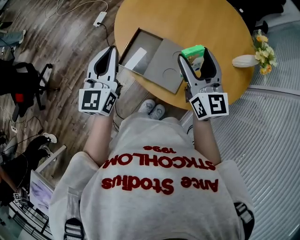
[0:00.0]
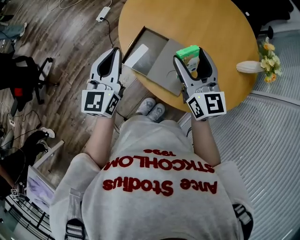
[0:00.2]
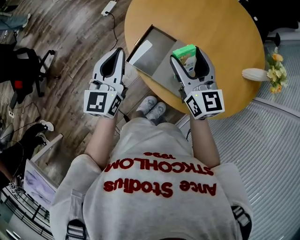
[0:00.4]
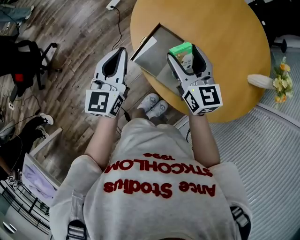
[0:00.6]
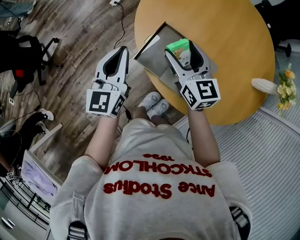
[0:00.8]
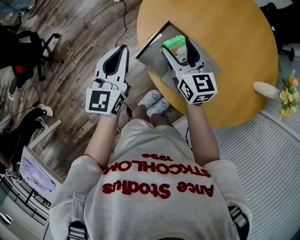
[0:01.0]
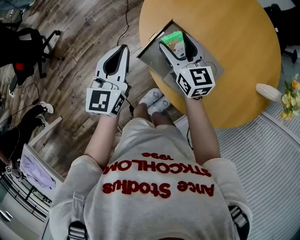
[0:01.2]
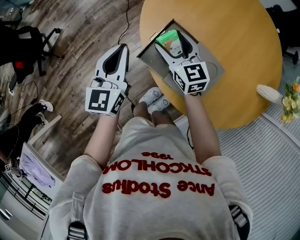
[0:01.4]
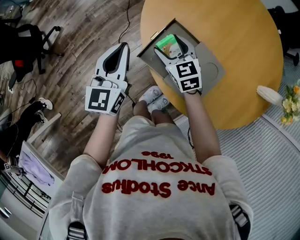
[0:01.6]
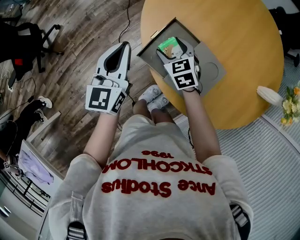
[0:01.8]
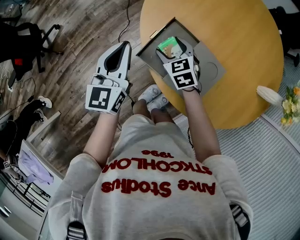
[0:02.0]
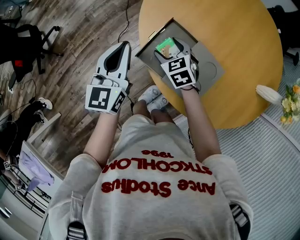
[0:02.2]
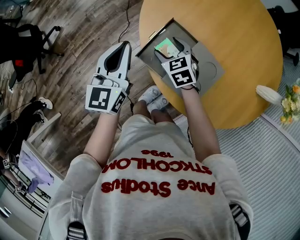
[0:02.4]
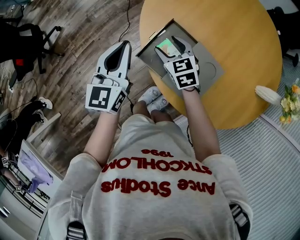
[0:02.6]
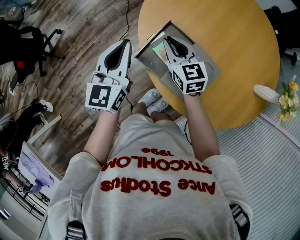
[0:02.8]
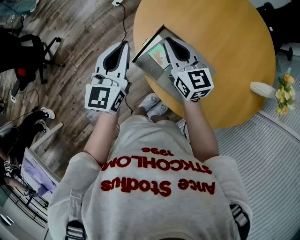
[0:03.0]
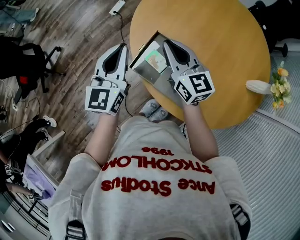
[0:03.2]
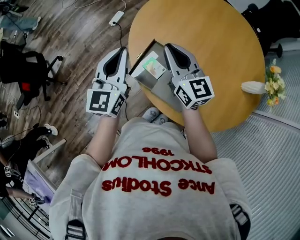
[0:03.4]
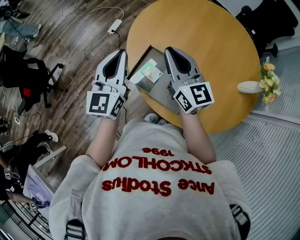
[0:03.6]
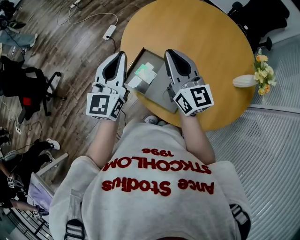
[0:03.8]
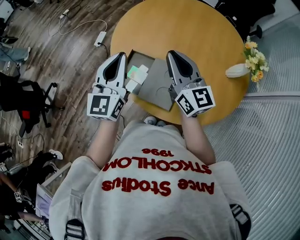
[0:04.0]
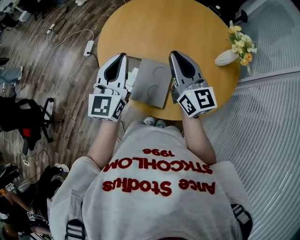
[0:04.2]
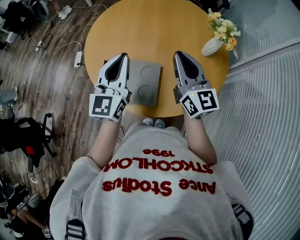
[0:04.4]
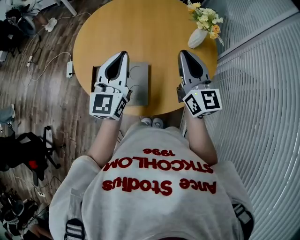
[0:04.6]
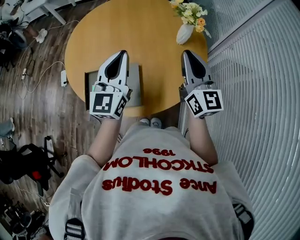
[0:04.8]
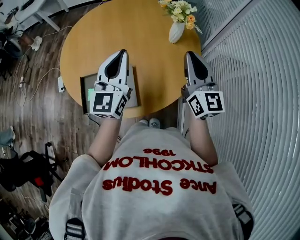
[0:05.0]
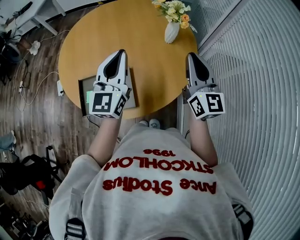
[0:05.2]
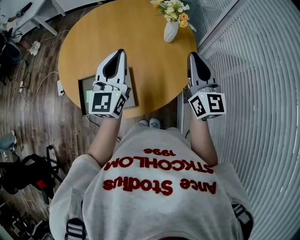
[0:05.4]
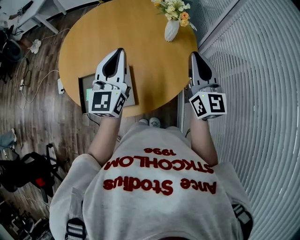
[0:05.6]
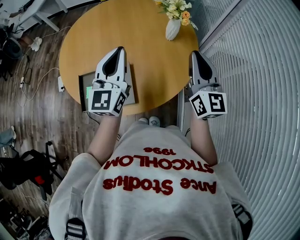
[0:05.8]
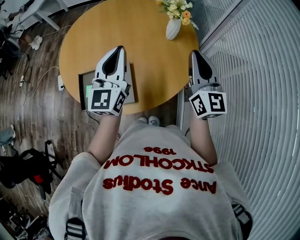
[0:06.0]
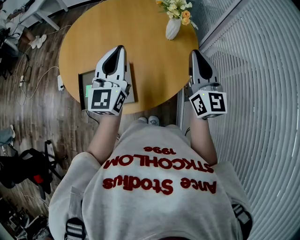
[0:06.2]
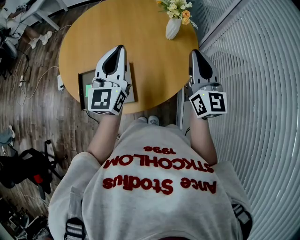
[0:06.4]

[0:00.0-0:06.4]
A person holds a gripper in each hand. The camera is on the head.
0:00.0 to 0:01.6: The left gripper shifts approximately 10 cm downward; the right gripper goes approximately 30 cm downward, to the left and forward, and points its fingers about 30 degrees further downward.
0:01.6 to 0:03.2: The left gripper is displaced upward by approximately 5 cm, while the right gripper travels upward by some 15 cm, turns by approximately 30 degrees, and closes.
0:03.2 to 0:04.8: The left gripper ends up about 25 cm from where it was, and rotates roughly 40 degrees. The right gripper ends up some 35 cm from where it was, and swivels some 50 degrees.
0:04.8 to 0:06.4: The right gripper goes roughly 10 cm to the right.

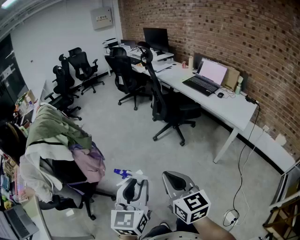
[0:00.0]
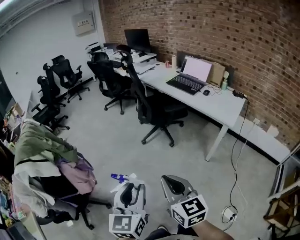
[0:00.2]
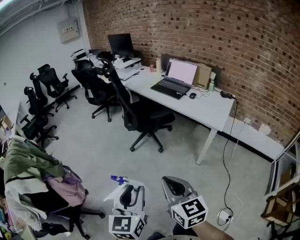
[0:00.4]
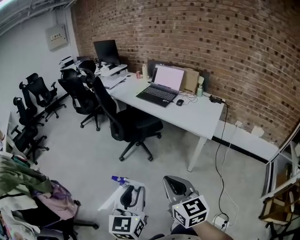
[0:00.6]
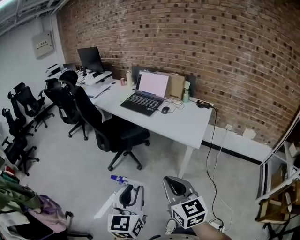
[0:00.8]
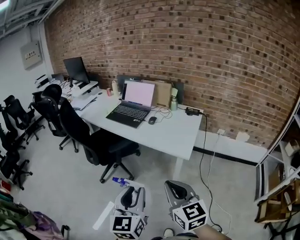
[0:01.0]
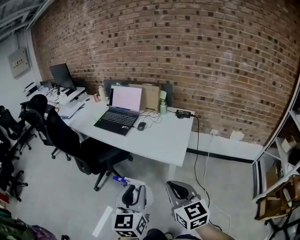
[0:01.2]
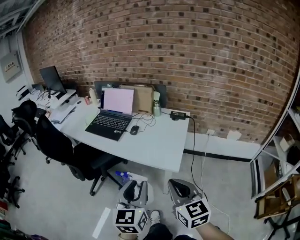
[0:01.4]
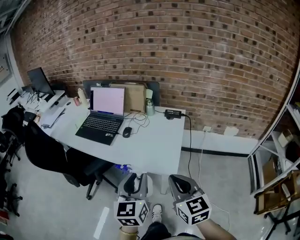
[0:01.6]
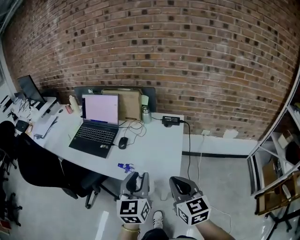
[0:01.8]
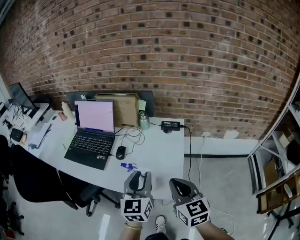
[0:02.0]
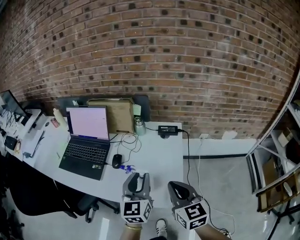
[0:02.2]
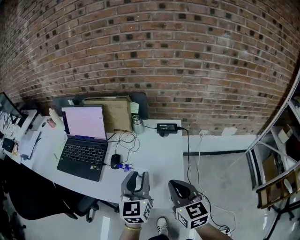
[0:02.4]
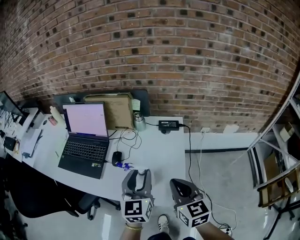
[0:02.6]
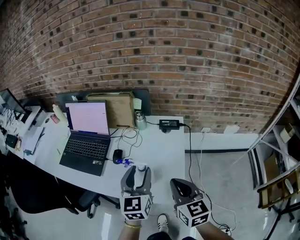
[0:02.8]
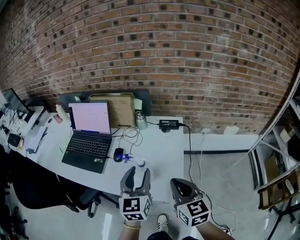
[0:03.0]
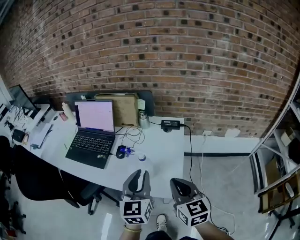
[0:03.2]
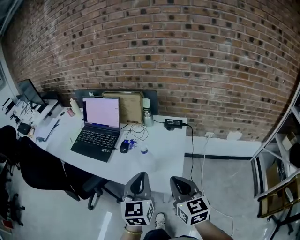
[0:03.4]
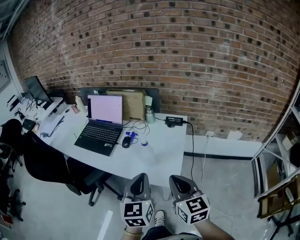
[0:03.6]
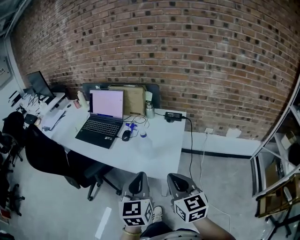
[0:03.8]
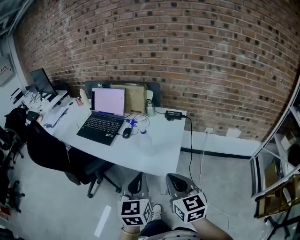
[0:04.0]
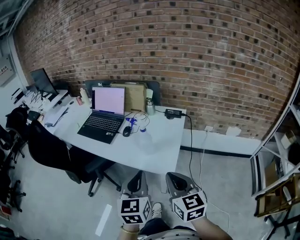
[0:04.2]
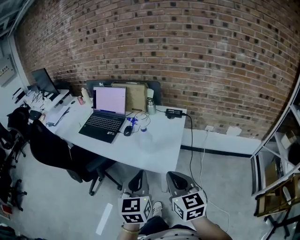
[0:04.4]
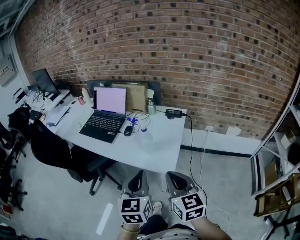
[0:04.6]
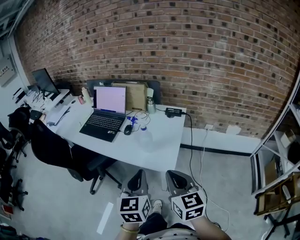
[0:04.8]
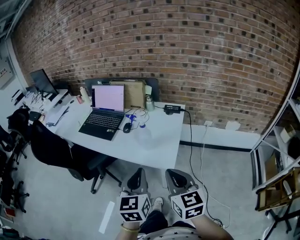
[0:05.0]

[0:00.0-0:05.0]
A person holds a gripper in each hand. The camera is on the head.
0:00.0 to 0:01.6: The pair of grippers is taken some 70 cm. The left gripper turns by some 30 degrees, while the right gripper swivels about 40 degrees.
0:01.6 to 0:03.4: The grippers both shift forward by approximately 10 cm. The left gripper closes its fingers.
0:03.4 to 0:05.0: The grippers both shift backward by about 15 cm.

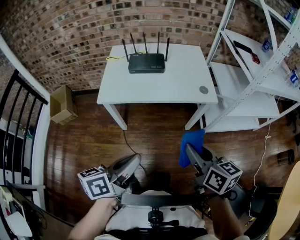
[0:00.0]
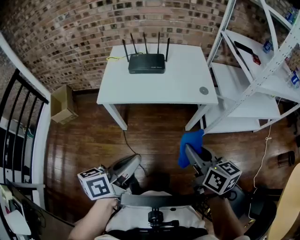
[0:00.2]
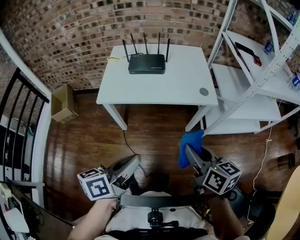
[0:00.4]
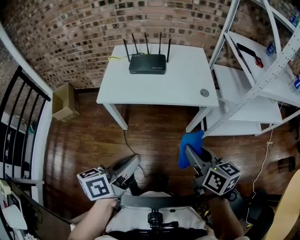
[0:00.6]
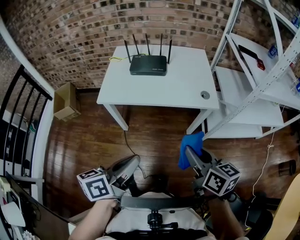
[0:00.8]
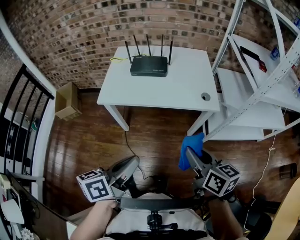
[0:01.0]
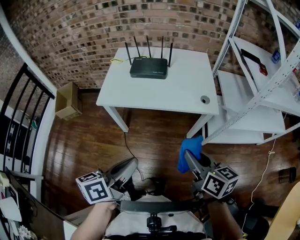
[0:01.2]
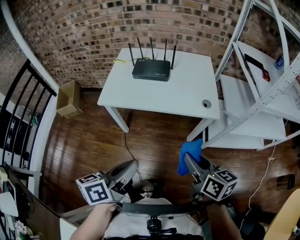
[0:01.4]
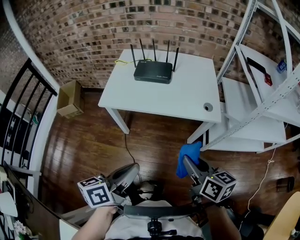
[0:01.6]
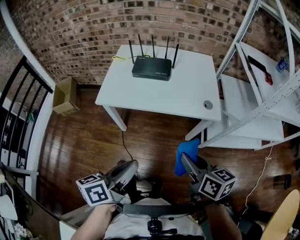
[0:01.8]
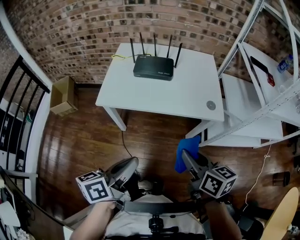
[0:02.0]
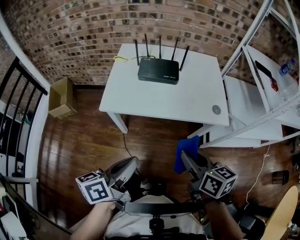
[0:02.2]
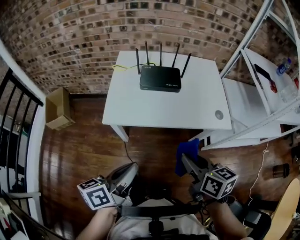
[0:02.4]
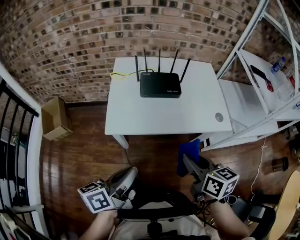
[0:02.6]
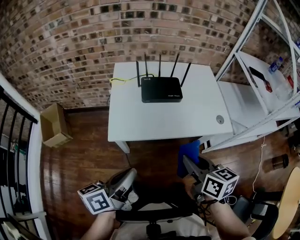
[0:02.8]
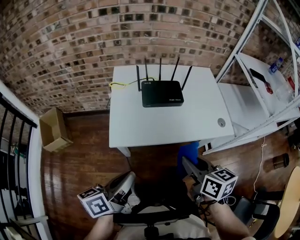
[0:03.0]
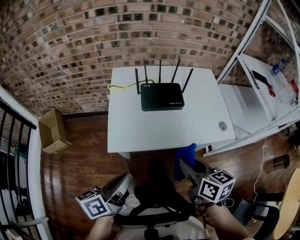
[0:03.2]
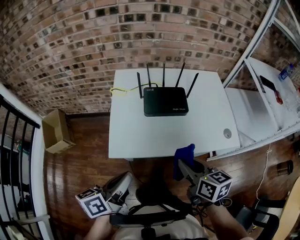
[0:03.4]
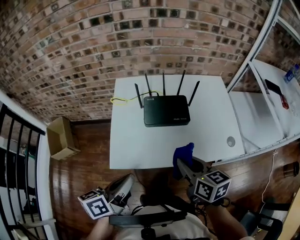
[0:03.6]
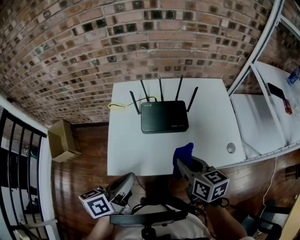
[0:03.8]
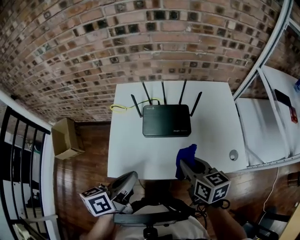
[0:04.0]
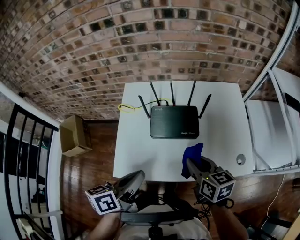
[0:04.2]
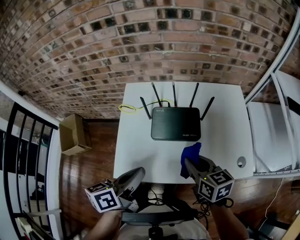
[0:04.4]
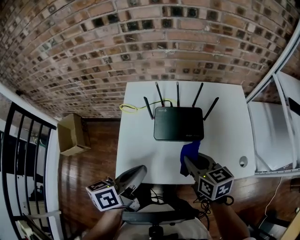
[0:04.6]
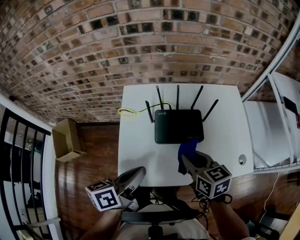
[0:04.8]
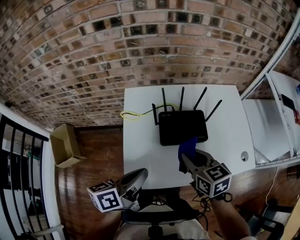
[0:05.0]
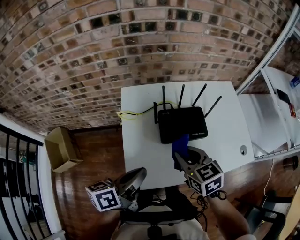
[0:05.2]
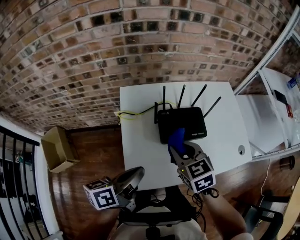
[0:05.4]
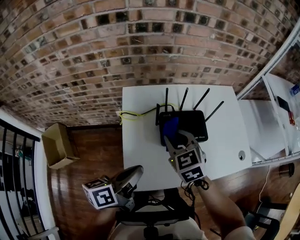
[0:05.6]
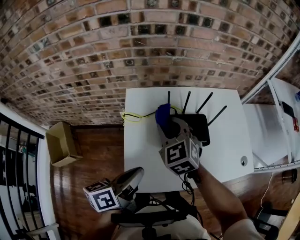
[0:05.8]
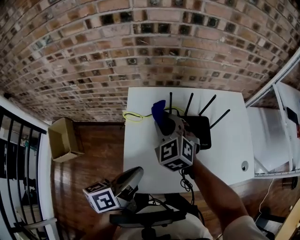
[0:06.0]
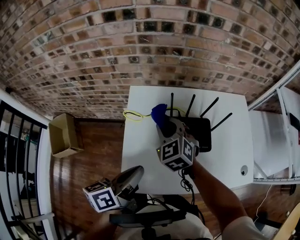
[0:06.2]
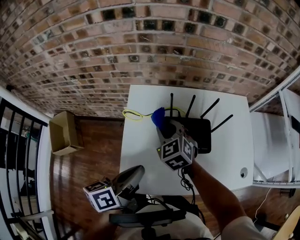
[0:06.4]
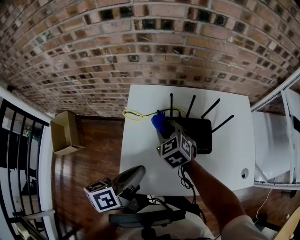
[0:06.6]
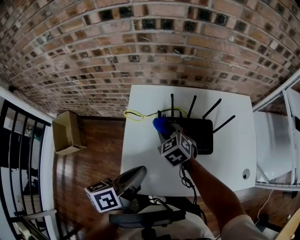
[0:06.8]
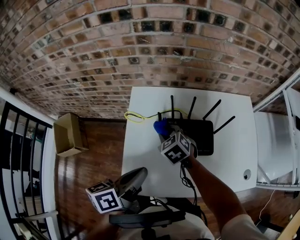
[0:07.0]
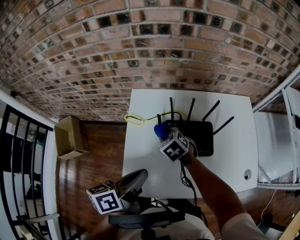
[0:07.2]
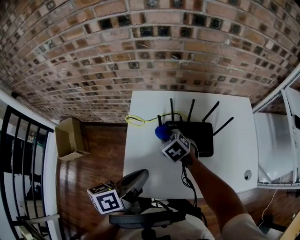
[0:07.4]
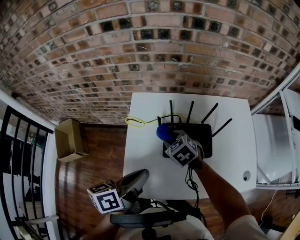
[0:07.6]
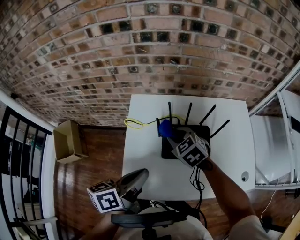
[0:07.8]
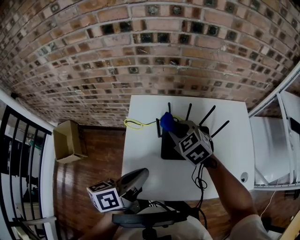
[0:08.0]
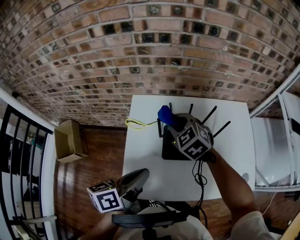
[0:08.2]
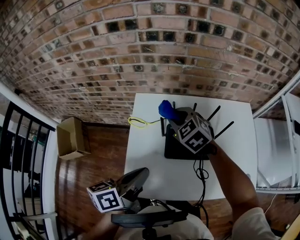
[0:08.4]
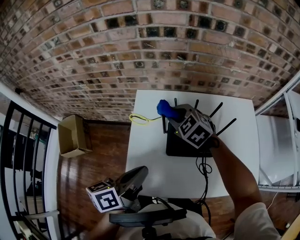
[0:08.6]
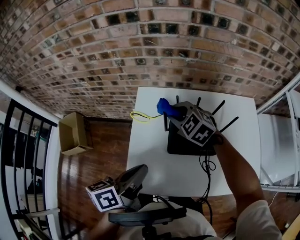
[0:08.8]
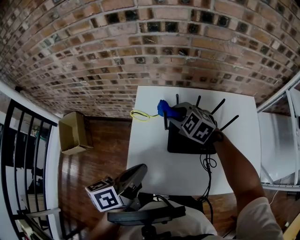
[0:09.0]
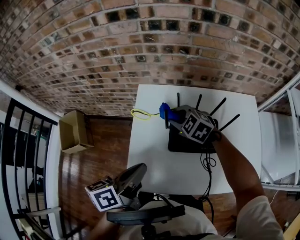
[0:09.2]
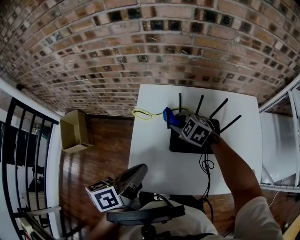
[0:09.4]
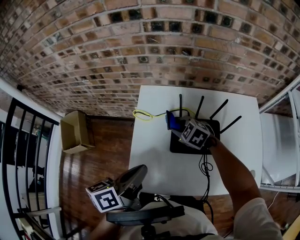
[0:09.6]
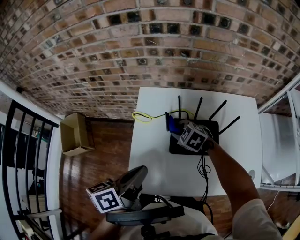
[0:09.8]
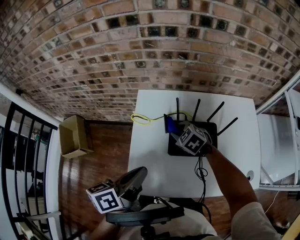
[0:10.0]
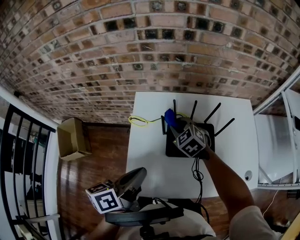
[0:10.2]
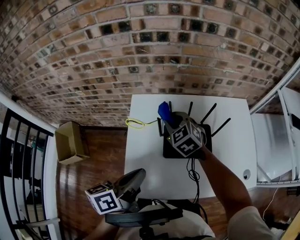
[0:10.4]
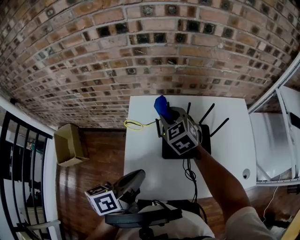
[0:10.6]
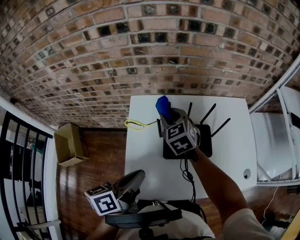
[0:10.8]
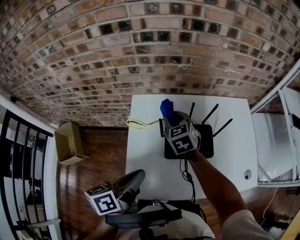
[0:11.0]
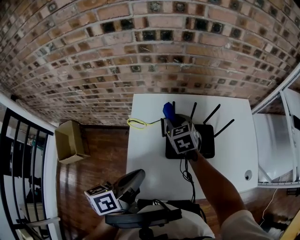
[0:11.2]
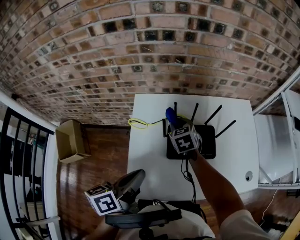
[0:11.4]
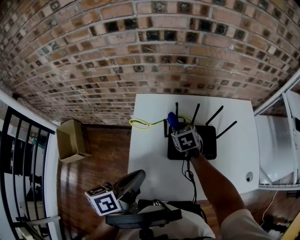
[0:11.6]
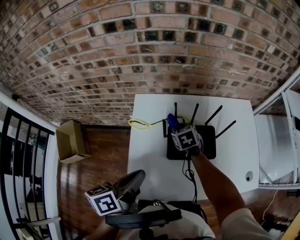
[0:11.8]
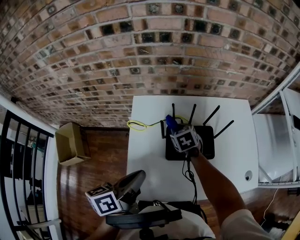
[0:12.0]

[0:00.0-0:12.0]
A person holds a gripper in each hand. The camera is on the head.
0:00.0 to 0:01.6: The left gripper travels to the right by about 5 cm; the right gripper moves forward and to the right, roughly 10 cm.
0:01.6 to 0:03.0: The grippers both shift to the left and forward by some 35 cm.
0:03.0 to 0:04.4: The two grippers go about 30 cm forward.
0:04.4 to 0:06.0: The left gripper moves to the left and forward, some 15 cm. The right gripper is displaced to the left and forward by approximately 30 cm, and rolls counterclockwise, seen from behind, by roughly 50 degrees.
0:06.0 to 0:07.6: The right gripper heads downward, covering about 10 cm, and turns by approximately 30 degrees.
0:07.6 to 0:09.0: The right gripper is displaced upward and forward by roughly 10 cm, and rotates approximately 30 degrees.
0:09.0 to 0:10.4: The right gripper moves roughly 10 cm downward and comes back, and swivels roughly 20 degrees.
0:10.4 to 0:12.0: The right gripper shifts about 10 cm downward, and turns by about 30 degrees.
